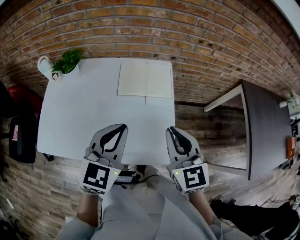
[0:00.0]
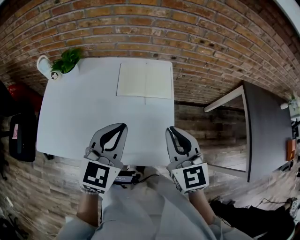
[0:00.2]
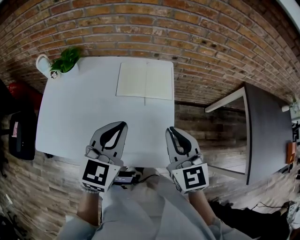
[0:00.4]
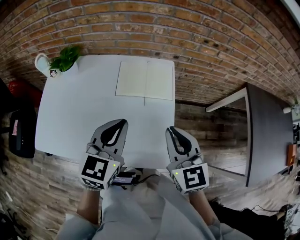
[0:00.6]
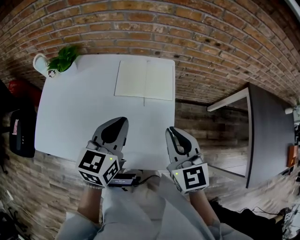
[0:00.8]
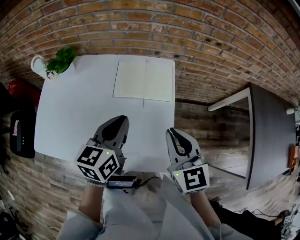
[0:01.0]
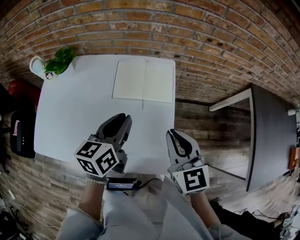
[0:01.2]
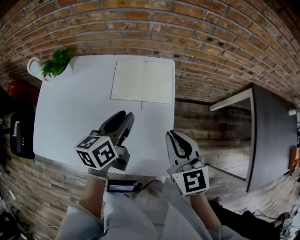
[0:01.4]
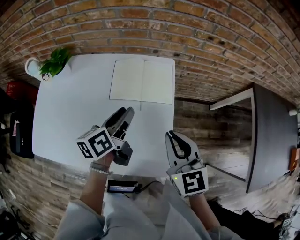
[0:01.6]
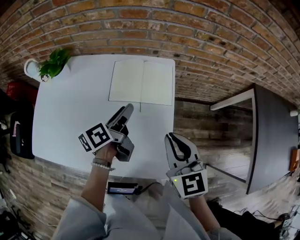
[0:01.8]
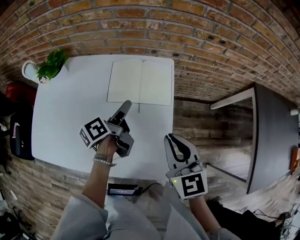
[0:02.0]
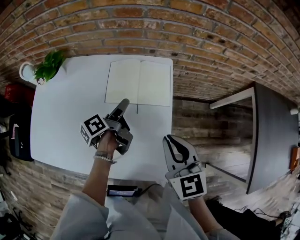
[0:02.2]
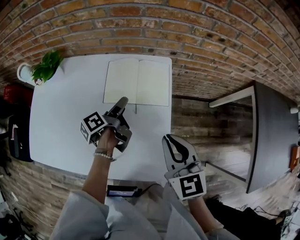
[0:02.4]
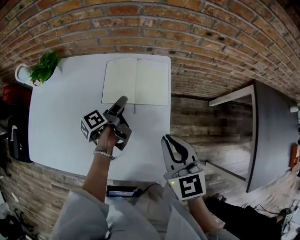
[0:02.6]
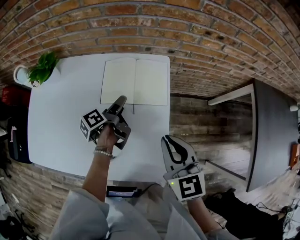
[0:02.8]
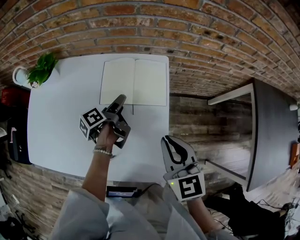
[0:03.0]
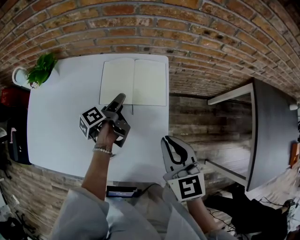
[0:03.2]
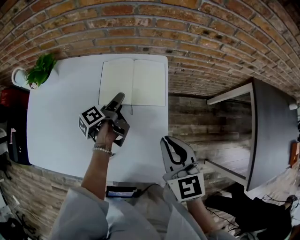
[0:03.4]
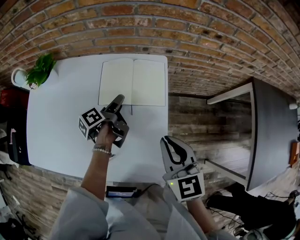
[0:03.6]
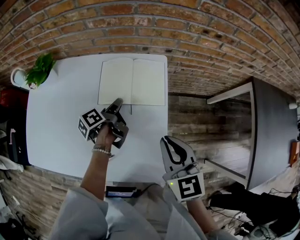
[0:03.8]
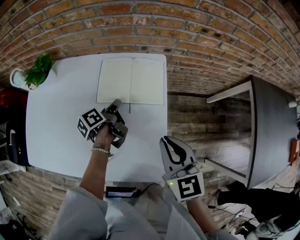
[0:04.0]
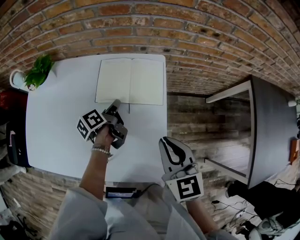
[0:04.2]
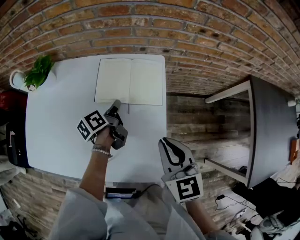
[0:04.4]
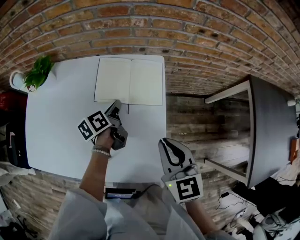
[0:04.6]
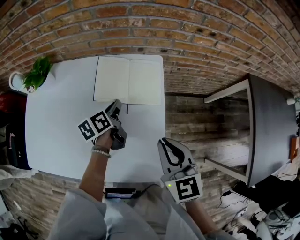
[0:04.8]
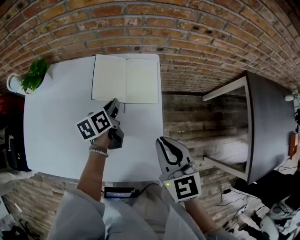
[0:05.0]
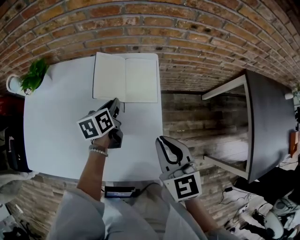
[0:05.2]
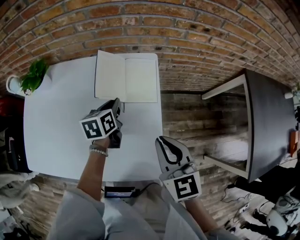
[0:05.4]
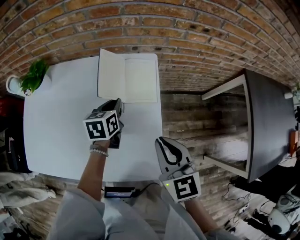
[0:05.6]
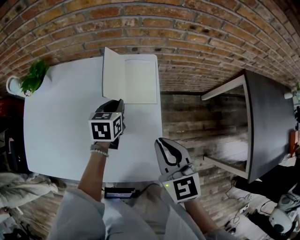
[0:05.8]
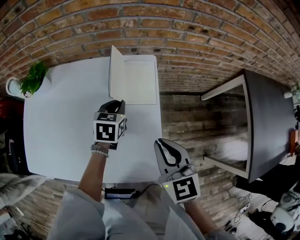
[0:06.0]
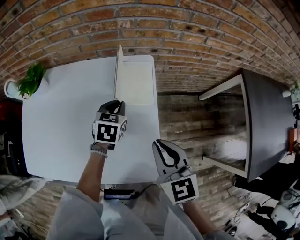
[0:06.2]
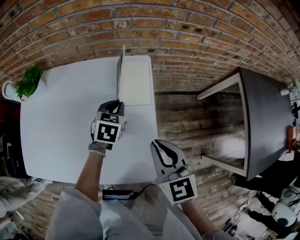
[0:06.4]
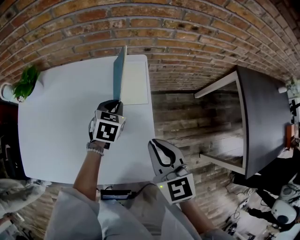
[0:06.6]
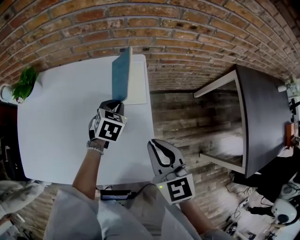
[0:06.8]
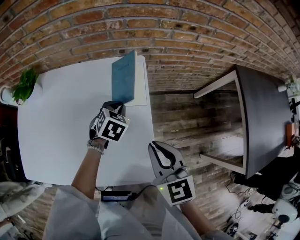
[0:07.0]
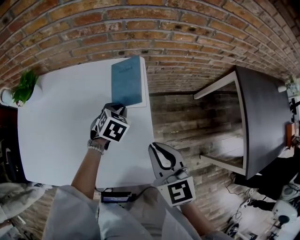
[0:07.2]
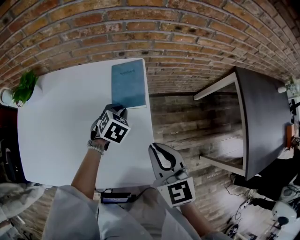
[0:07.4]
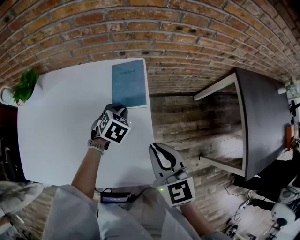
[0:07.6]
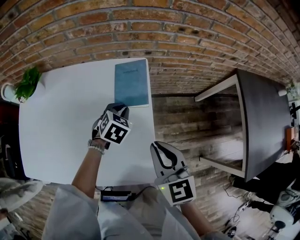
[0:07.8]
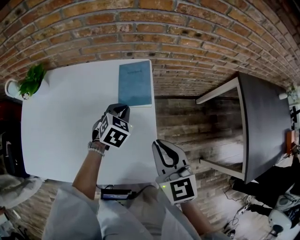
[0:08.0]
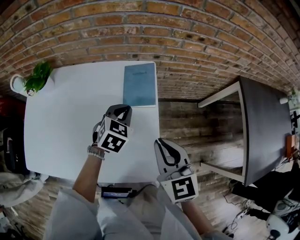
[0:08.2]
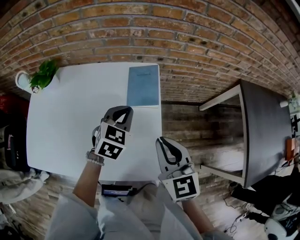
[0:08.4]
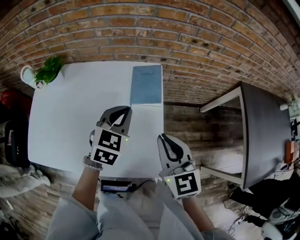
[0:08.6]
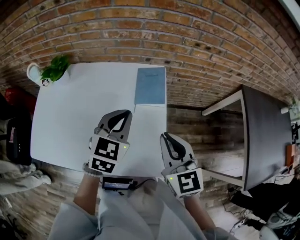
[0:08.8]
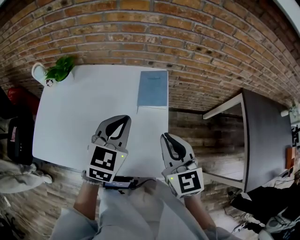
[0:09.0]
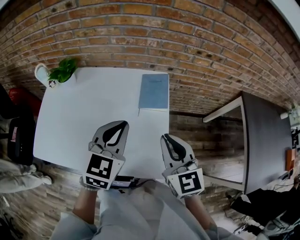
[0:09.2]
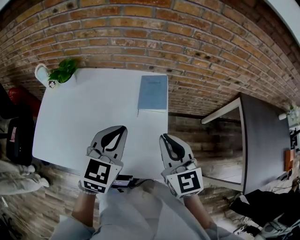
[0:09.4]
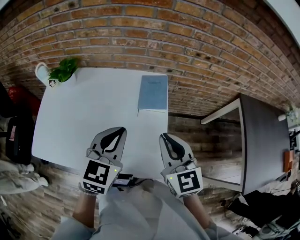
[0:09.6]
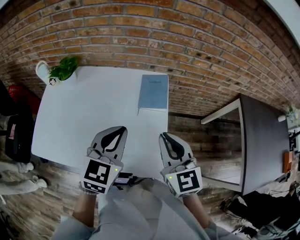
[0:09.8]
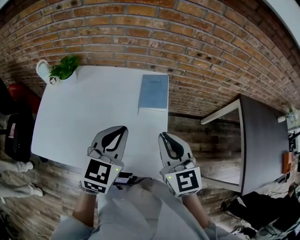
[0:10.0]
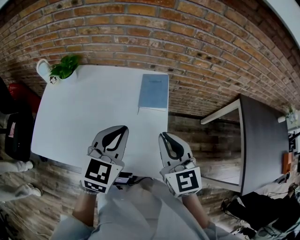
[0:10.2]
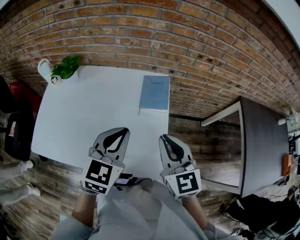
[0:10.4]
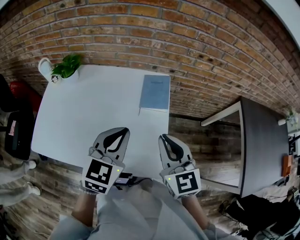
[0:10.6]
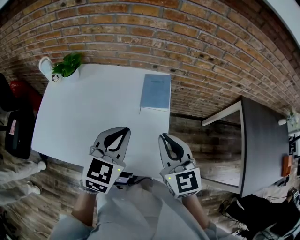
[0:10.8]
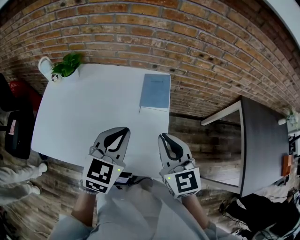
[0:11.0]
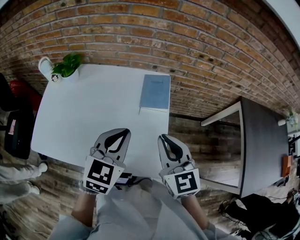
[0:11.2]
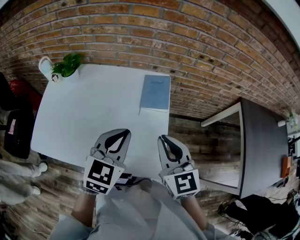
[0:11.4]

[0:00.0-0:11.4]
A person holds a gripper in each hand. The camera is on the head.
0:00.0 to 0:01.4: The left gripper shifts about 15 cm forward and downward, twists roughly 40 degrees counterclockwise, seen from behind, and opens. Meanwhile the right gripper heads forward, covering about 10 cm.
0:01.4 to 0:02.8: The left gripper goes approximately 20 cm downward and forward, twists some 50 degrees counterclockwise, seen from behind, and opens.
0:02.8 to 0:04.2: The left gripper closes up.
0:04.2 to 0:05.6: The left gripper rolls clockwise, seen from behind, by approximately 50 degrees.
0:05.6 to 0:07.2: The left gripper heads to the right, covering roughly 5 cm, and swivels some 40 degrees.
0:07.2 to 0:08.6: The right gripper shifts about 5 cm upward, while the left gripper moves upward and backward, about 20 cm, and swivels about 30 degrees.
0:08.6 to 0:10.0: The left gripper goes about 15 cm backward and upward, while the right gripper ends up some 5 cm from where it was.
0:10.0 to 0:11.4: There are only small adjustments of the grippers.

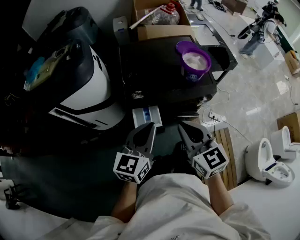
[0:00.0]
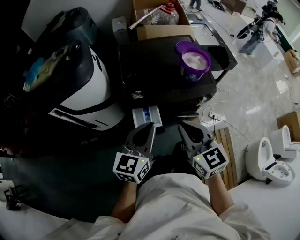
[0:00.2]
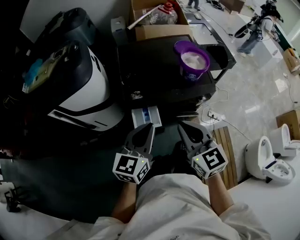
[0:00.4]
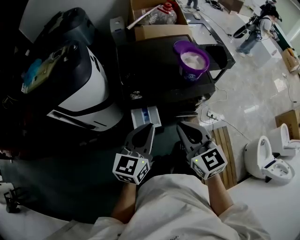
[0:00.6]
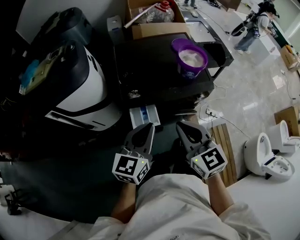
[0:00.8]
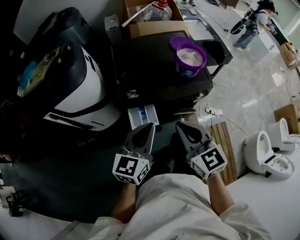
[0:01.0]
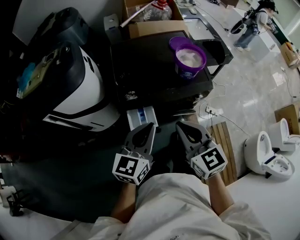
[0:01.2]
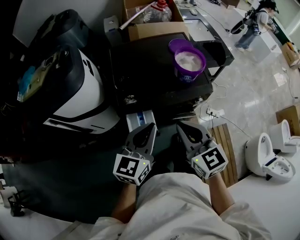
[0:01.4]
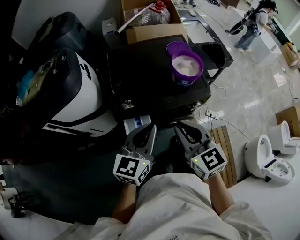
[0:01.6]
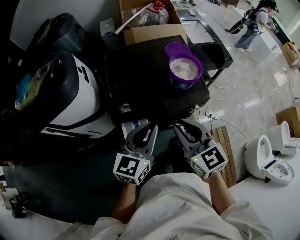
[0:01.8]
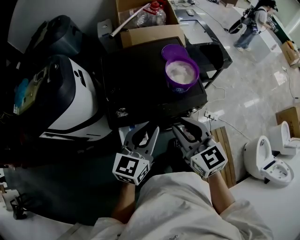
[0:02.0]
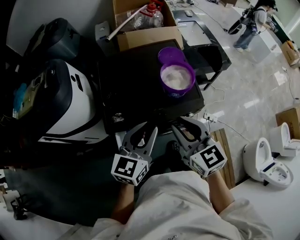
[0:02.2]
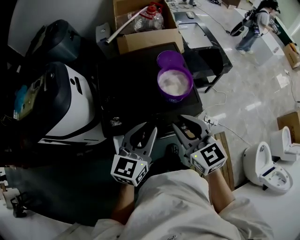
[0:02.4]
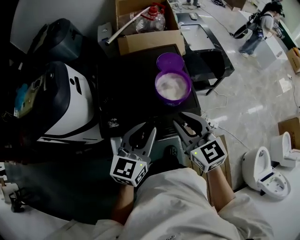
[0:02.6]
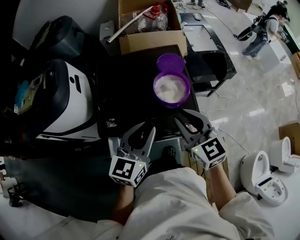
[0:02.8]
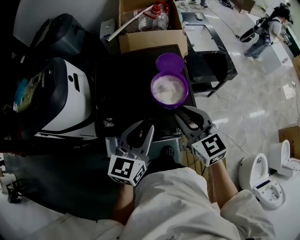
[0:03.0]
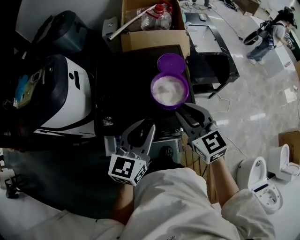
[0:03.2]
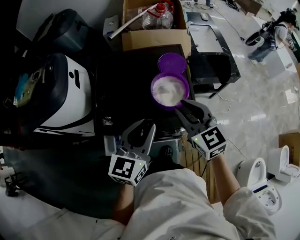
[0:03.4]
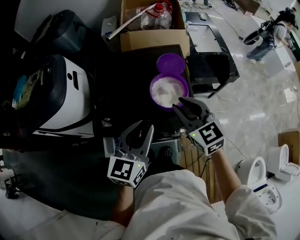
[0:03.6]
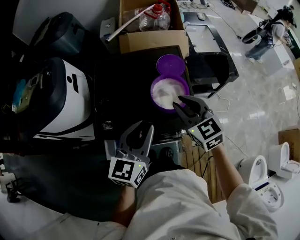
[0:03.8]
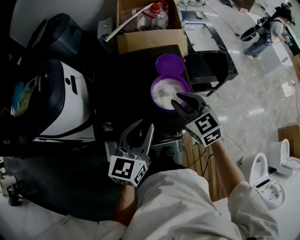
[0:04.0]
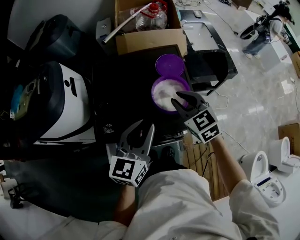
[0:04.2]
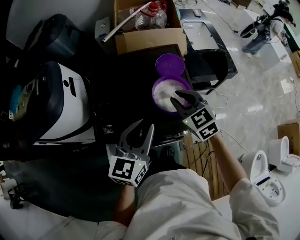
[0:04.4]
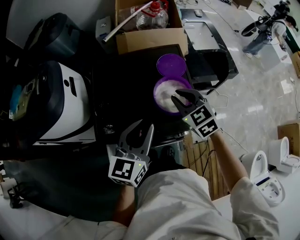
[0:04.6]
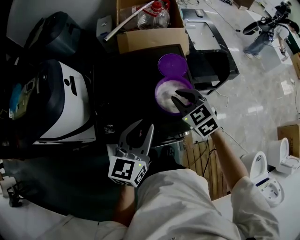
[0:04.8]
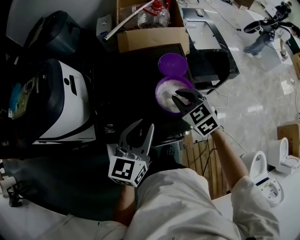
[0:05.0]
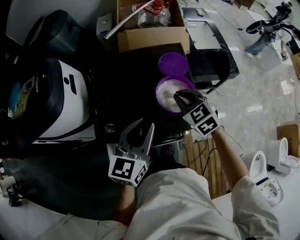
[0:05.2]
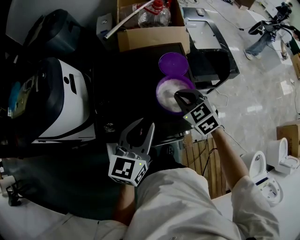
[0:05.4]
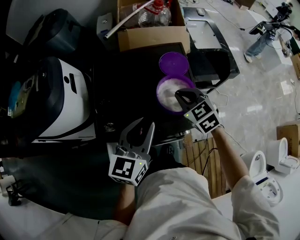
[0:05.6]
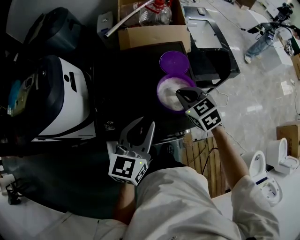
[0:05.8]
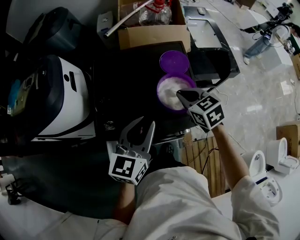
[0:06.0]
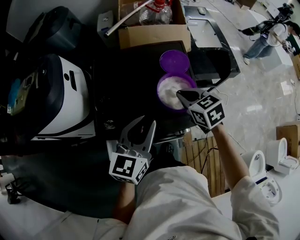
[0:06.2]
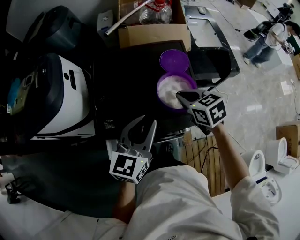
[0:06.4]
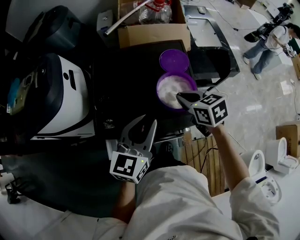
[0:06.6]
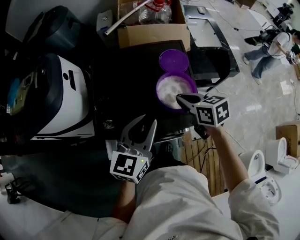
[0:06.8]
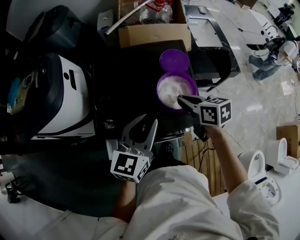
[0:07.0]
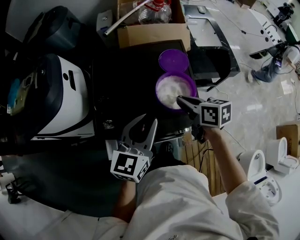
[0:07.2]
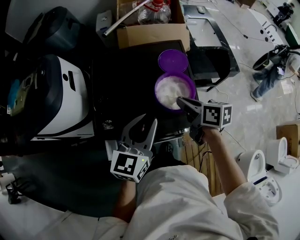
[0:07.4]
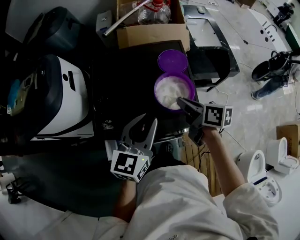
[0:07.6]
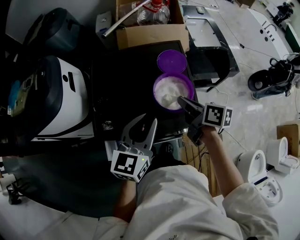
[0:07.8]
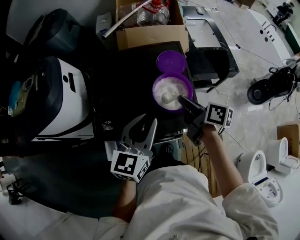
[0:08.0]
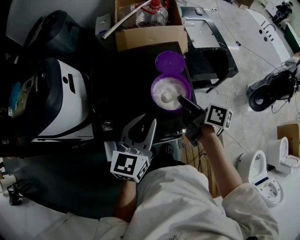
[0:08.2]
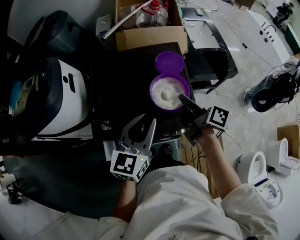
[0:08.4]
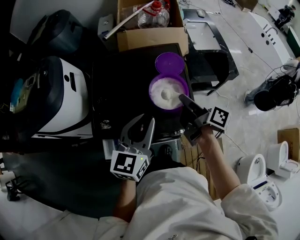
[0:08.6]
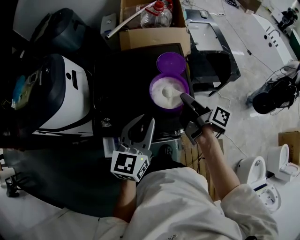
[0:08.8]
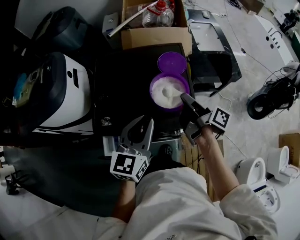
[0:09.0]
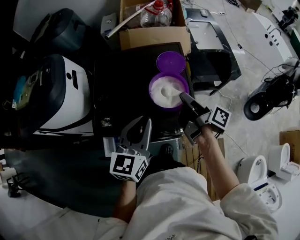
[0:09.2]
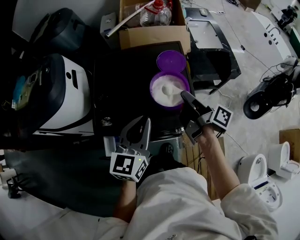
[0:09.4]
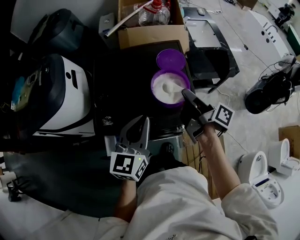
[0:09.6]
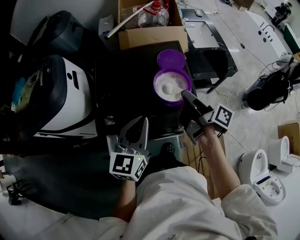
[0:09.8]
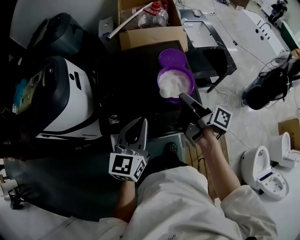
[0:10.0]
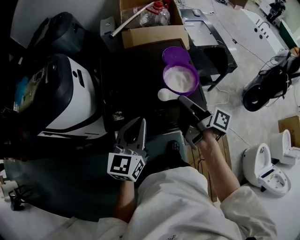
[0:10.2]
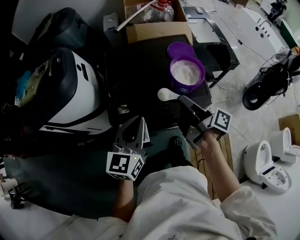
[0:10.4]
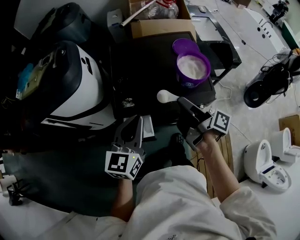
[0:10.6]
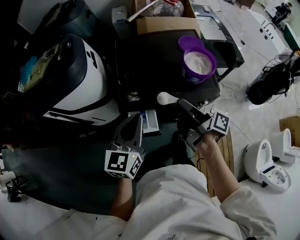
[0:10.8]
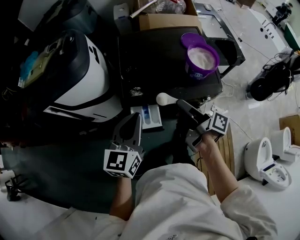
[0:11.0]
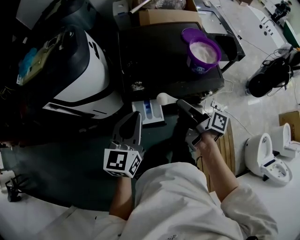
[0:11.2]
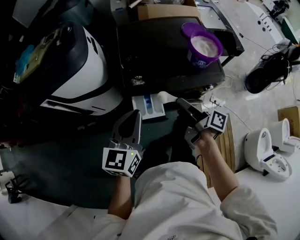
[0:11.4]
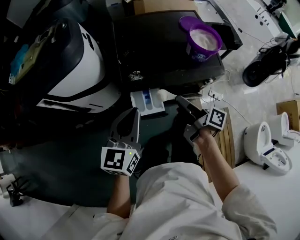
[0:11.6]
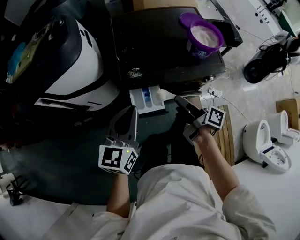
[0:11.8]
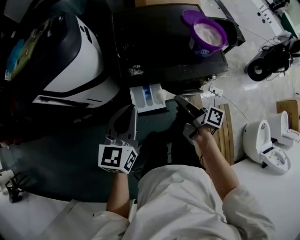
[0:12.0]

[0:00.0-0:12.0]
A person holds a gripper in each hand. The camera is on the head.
0:00.0 to 0:01.6: The two grippers go about 5 cm forward.
0:01.6 to 0:03.0: Both grippers travel together forward and to the right, approximately 20 cm.
0:03.0 to 0:04.4: The right gripper goes roughly 10 cm forward and downward.
0:04.4 to 0:06.0: The right gripper closes.
0:06.0 to 0:07.6: The right gripper rotates around the line of its fingers by roughly 50 degrees, clockwise from behind.
0:07.6 to 0:09.0: The right gripper turns by roughly 40 degrees.
0:09.0 to 0:10.4: The two grippers go some 15 cm to the left and backward.
0:10.4 to 0:12.0: The right gripper moves downward, to the left and backward, some 20 cm, while the left gripper heads to the left, backward and downward, covering approximately 15 cm.
